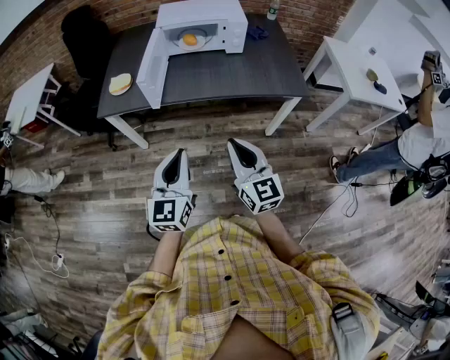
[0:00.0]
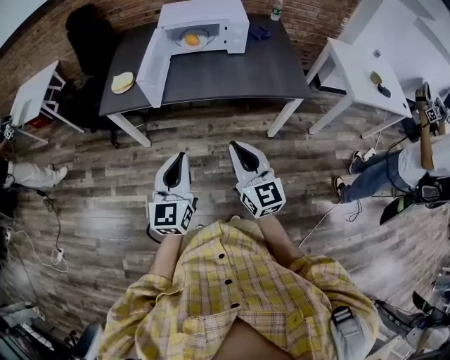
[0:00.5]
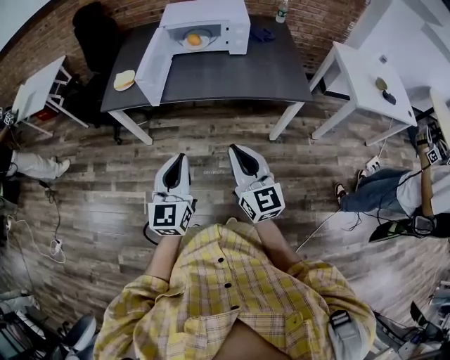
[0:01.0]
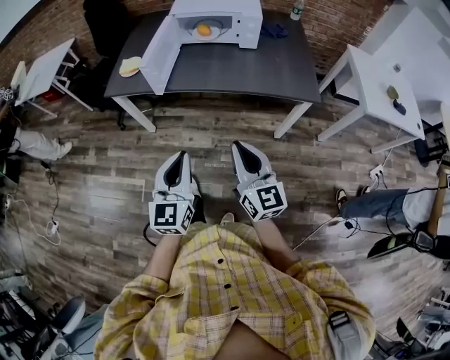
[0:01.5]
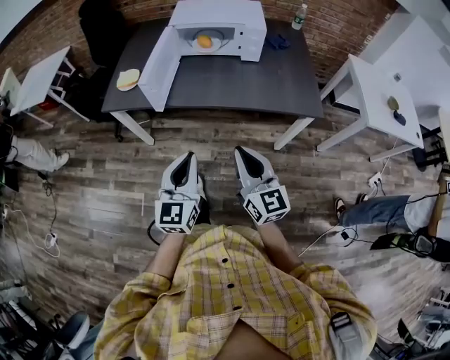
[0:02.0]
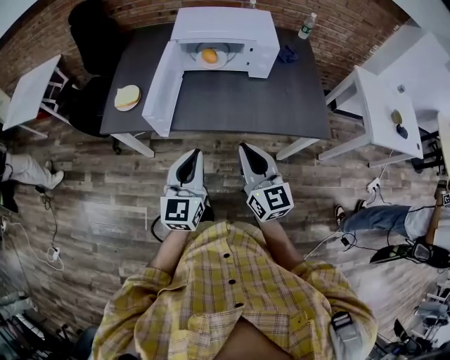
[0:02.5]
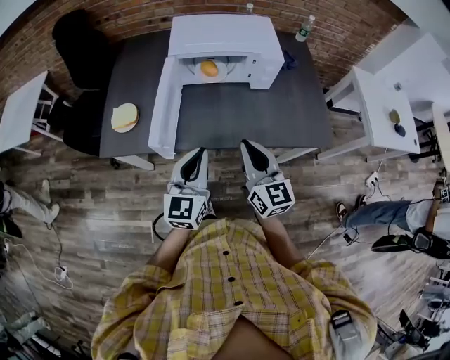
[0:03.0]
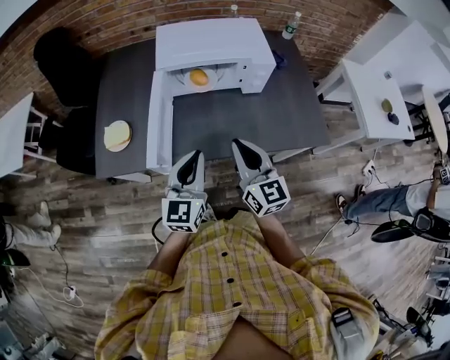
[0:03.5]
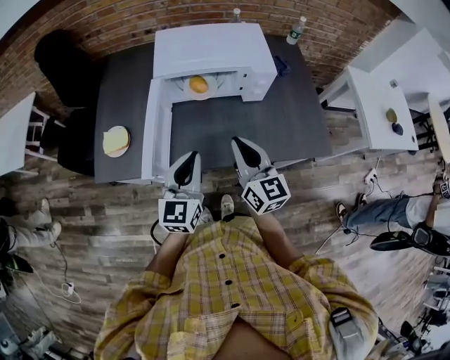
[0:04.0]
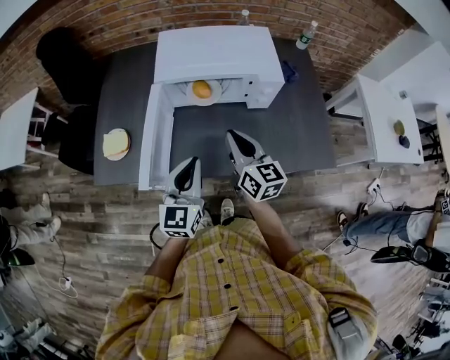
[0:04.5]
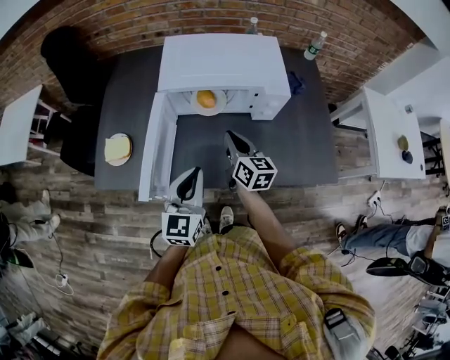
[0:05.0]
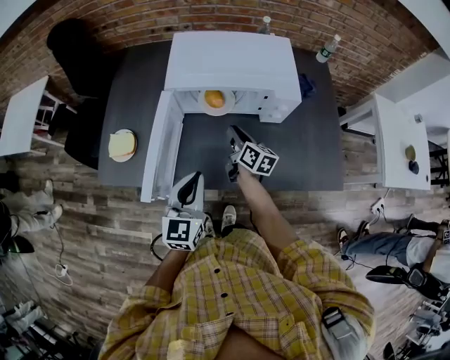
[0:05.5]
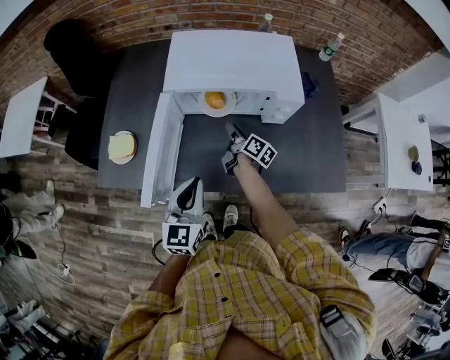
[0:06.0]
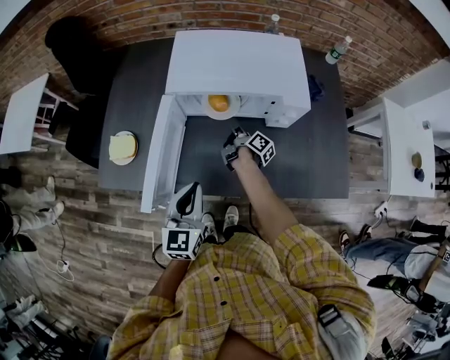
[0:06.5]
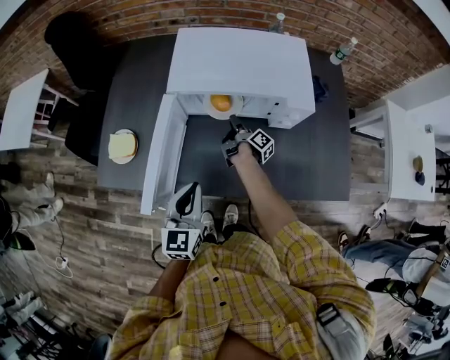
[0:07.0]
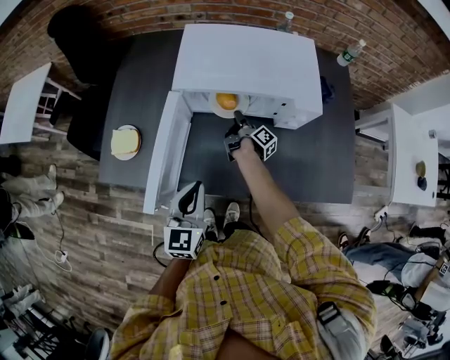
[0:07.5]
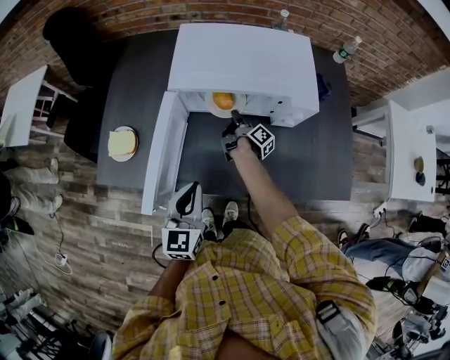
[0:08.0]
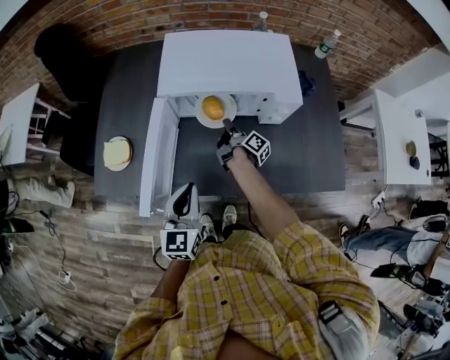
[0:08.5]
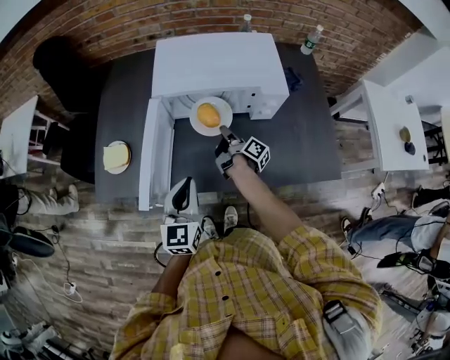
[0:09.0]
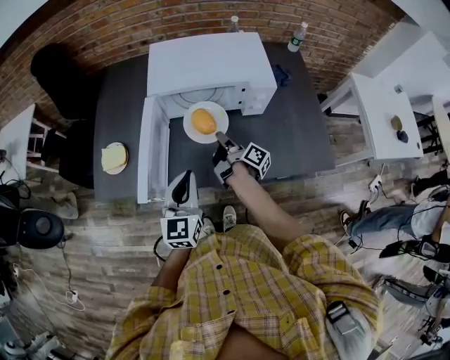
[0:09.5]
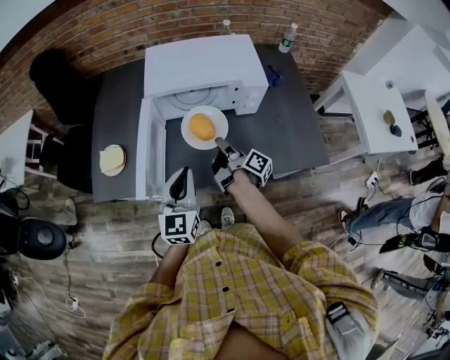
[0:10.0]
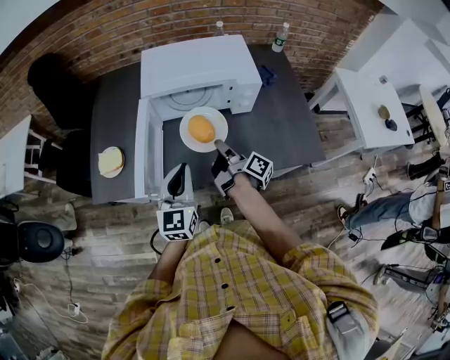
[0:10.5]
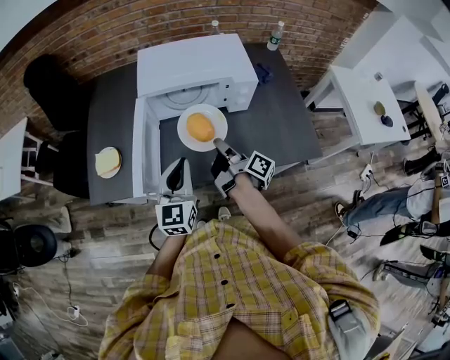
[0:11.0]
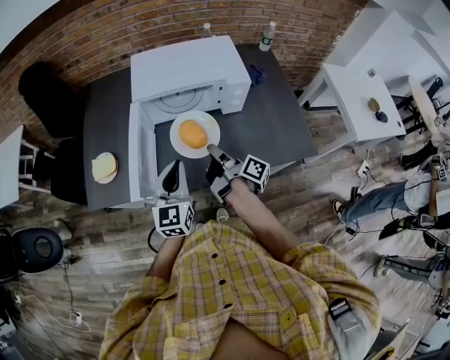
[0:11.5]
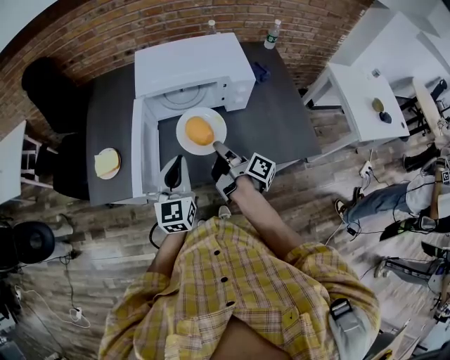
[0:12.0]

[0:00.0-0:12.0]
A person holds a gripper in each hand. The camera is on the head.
0:00.0 to 0:02.0: The right gripper goes some 10 cm to the right and forward. The left gripper moves to the right, approximately 5 cm.
0:02.0 to 0:04.0: The two grippers go some 35 cm forward.
0:04.0 to 0:06.0: The left gripper moves downward, approximately 5 cm, while the right gripper travels downward and forward by roughly 35 cm, rotates around the line of its fingers by roughly 50 degrees, clockwise from behind, and opens.
0:06.0 to 0:08.0: The right gripper travels forward and downward by roughly 10 cm, and turns by about 20 degrees.
0:08.0 to 0:10.0: The left gripper moves upward, some 5 cm; the right gripper goes some 25 cm backward and upward.
0:10.0 to 0:12.0: The right gripper travels backward by approximately 5 cm.

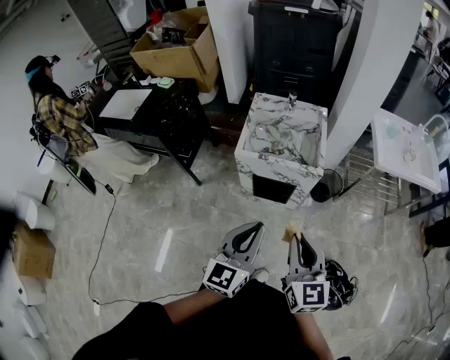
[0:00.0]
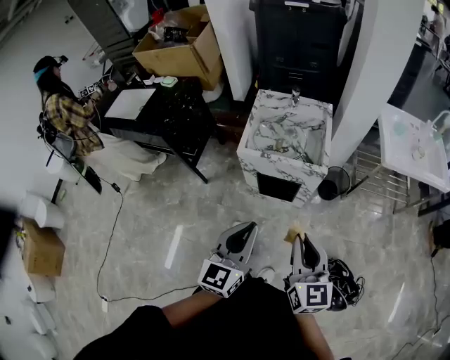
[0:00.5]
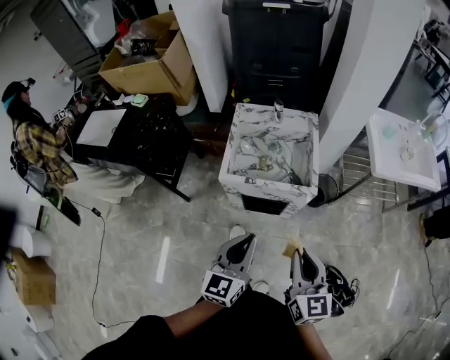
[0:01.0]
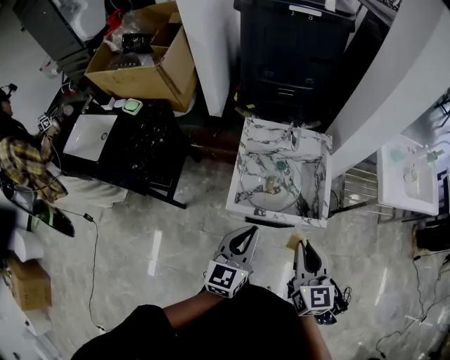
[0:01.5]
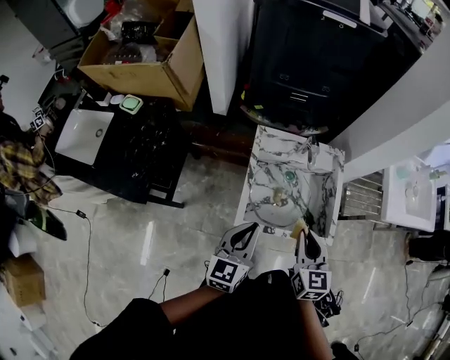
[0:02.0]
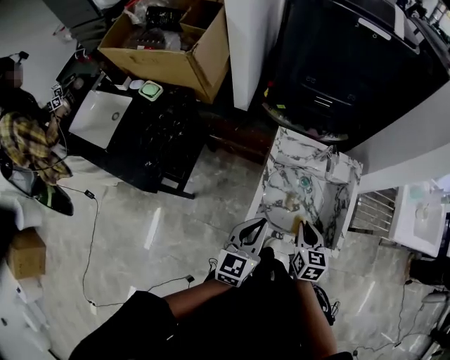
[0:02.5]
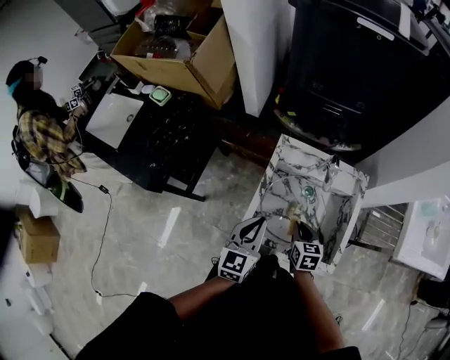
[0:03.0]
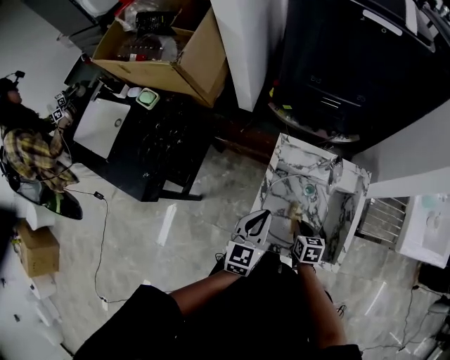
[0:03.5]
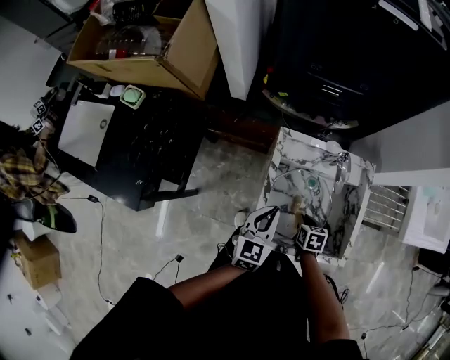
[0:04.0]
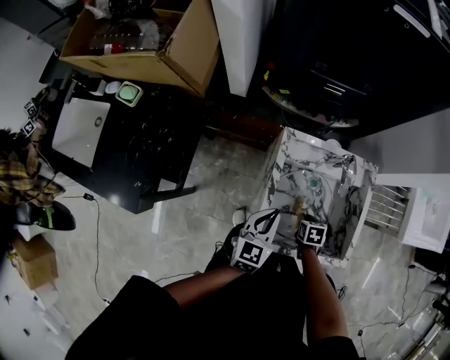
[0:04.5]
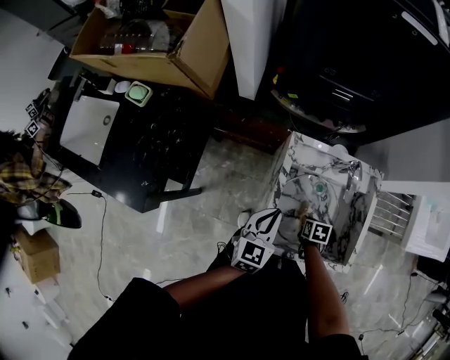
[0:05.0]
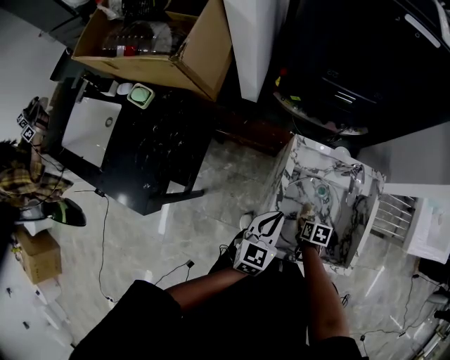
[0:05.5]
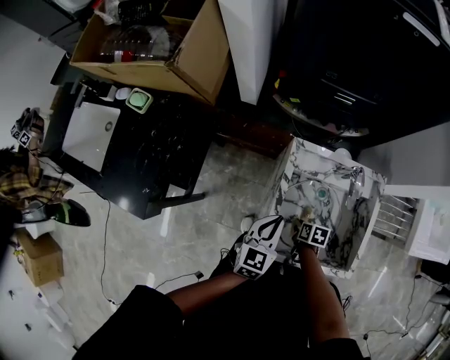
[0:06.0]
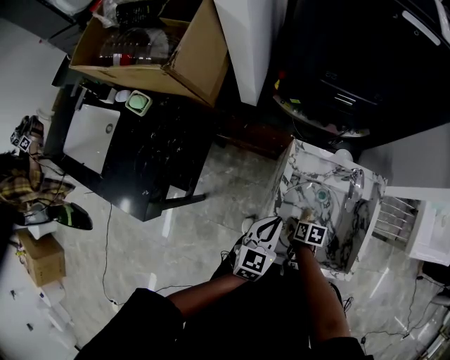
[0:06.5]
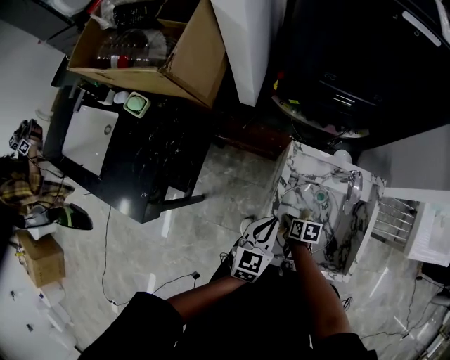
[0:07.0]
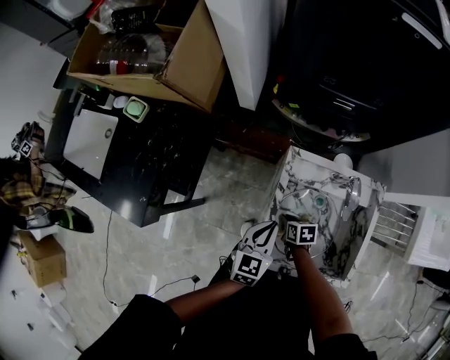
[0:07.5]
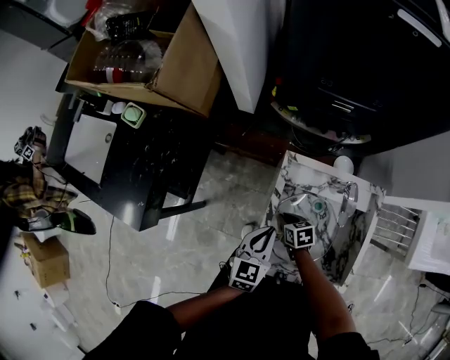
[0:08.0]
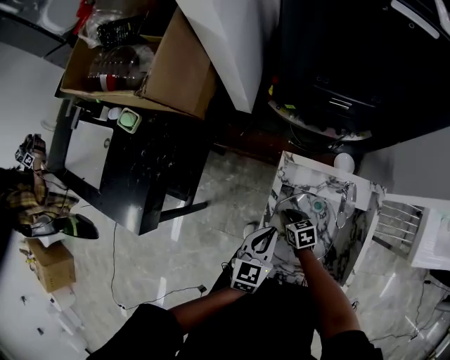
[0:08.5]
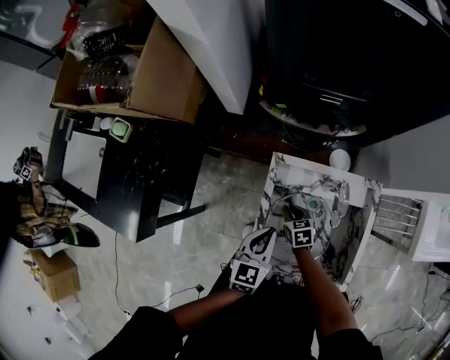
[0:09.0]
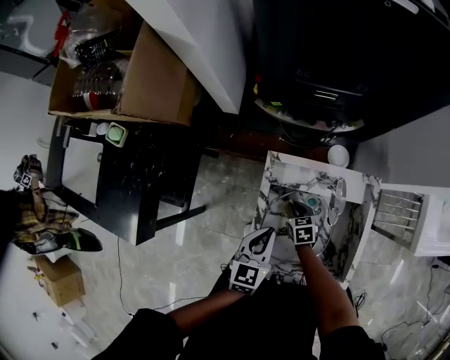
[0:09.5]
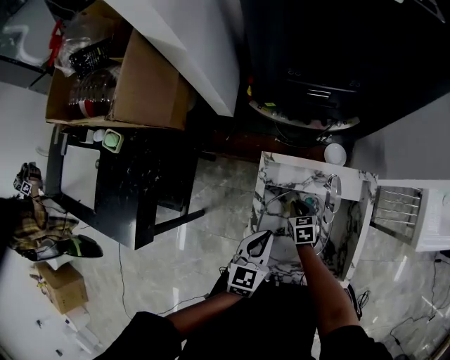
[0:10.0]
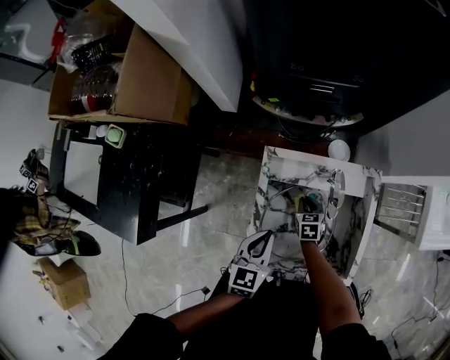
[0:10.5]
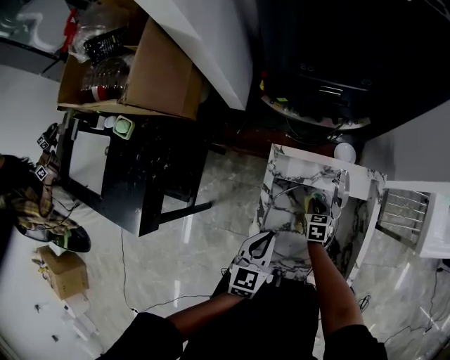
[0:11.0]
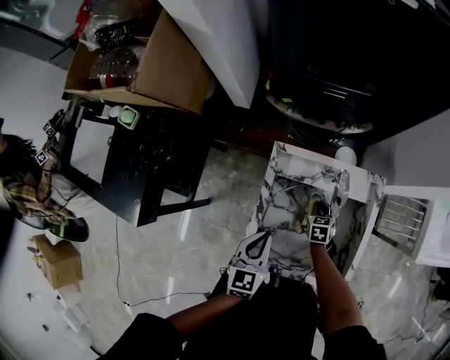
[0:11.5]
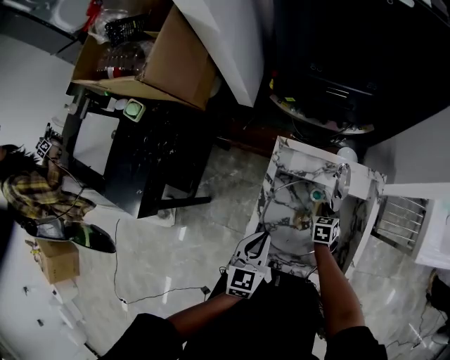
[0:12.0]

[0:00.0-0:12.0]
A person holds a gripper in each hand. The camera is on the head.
0:00.0 to 0:02.0: The left gripper is displaced forward and to the left by approximately 40 cm, while the right gripper goes roughly 40 cm forward.
0:02.0 to 0:04.0: The right gripper travels downward and forward by about 30 cm, and angles its fingers downward, by some 40 degrees, while the left gripper travels forward and downward by roughly 20 cm.
0:04.0 to 0:06.0: The right gripper heads to the left, covering some 5 cm.
0:06.0 to 0:08.0: The right gripper goes some 10 cm forward and to the left, and swivels some 30 degrees.
0:08.0 to 0:10.0: The right gripper heads to the right, covering some 10 cm, and turns by roughly 20 degrees.
0:10.0 to 0:12.0: The right gripper heads to the right, covering roughly 10 cm; the left gripper is displaced backward by about 5 cm.

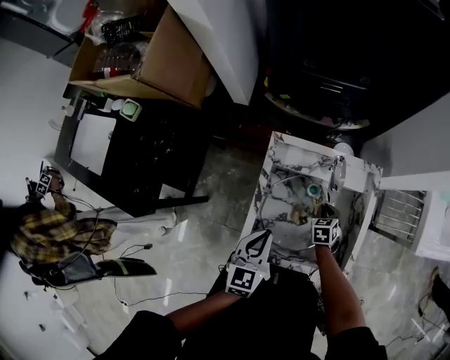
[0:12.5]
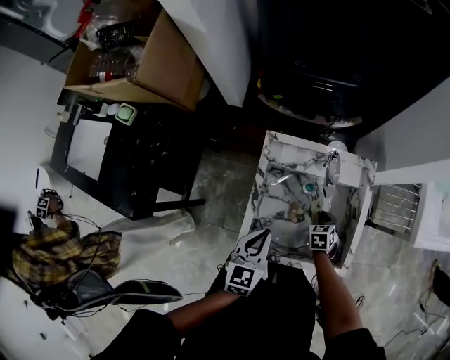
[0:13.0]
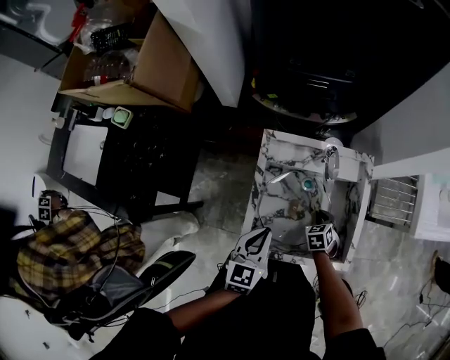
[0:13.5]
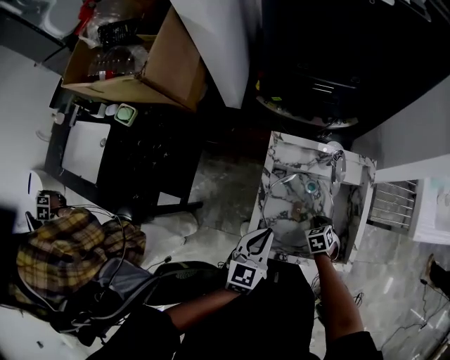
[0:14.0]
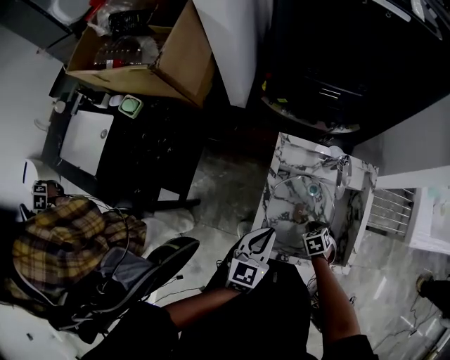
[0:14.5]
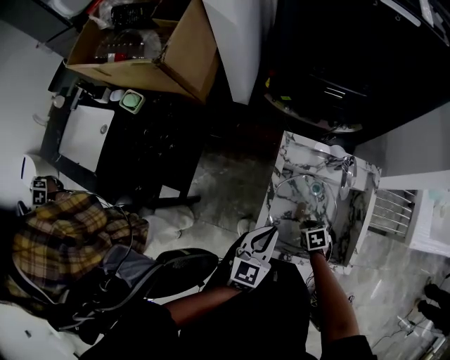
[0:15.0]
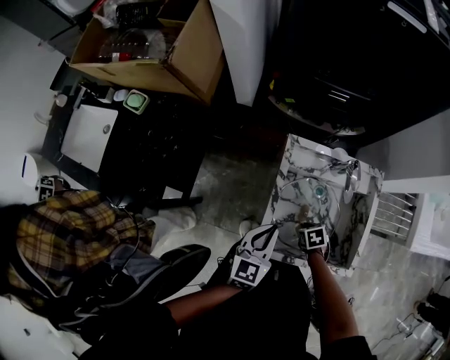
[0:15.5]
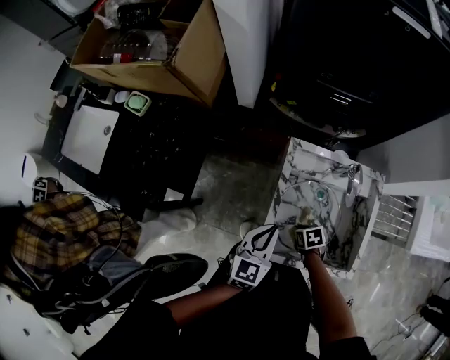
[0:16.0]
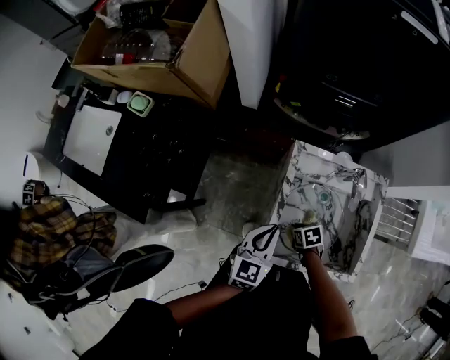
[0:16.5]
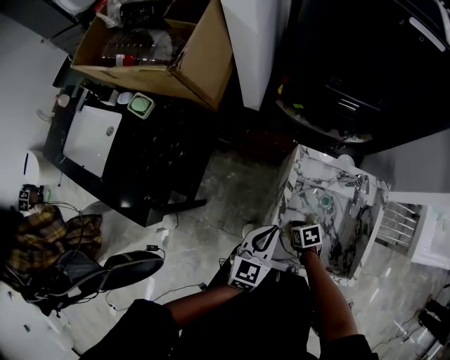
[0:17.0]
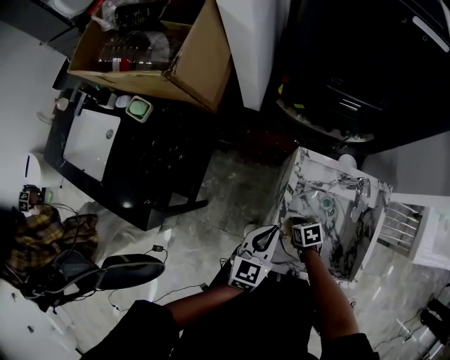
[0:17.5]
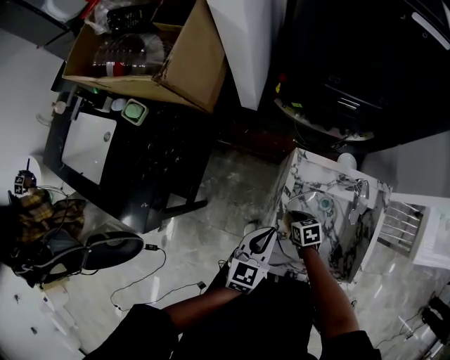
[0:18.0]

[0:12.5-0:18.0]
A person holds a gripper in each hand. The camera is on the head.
0:12.5 to 0:14.5: The right gripper shifts by about 10 cm.
0:14.5 to 0:16.0: The right gripper ends up roughly 10 cm from where it was, and swivels about 20 degrees.
0:16.0 to 0:18.0: The right gripper moves forward, some 10 cm.
